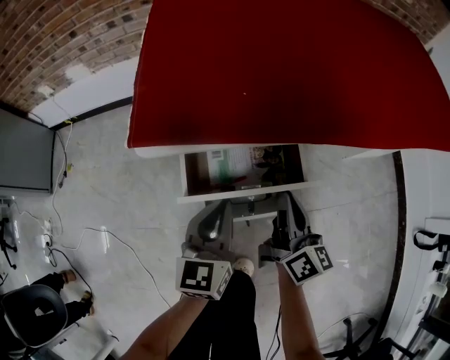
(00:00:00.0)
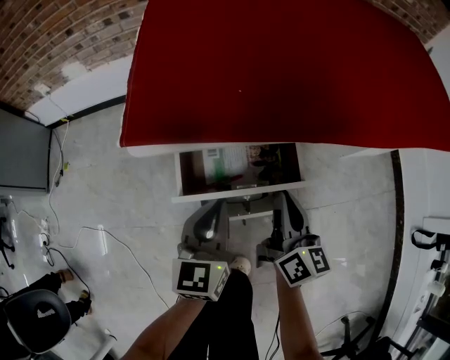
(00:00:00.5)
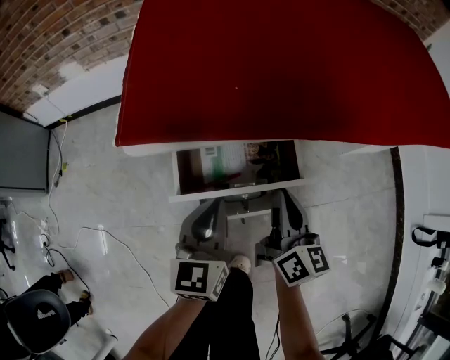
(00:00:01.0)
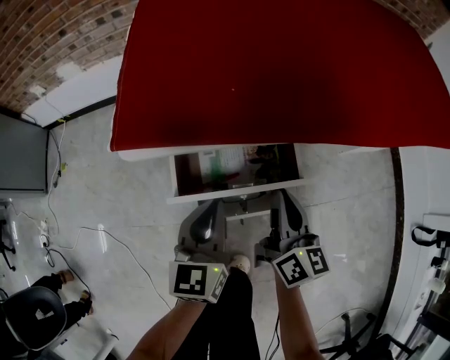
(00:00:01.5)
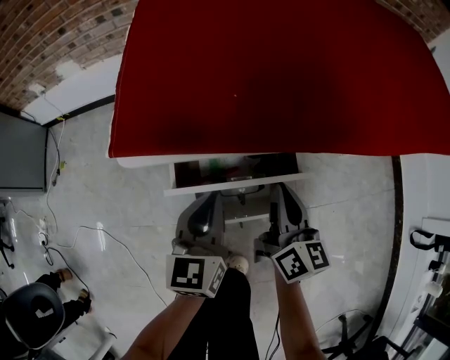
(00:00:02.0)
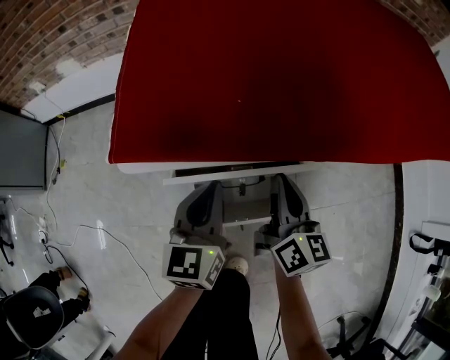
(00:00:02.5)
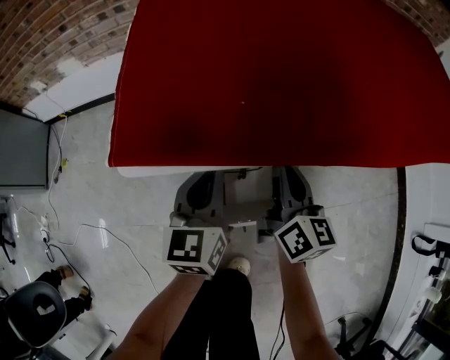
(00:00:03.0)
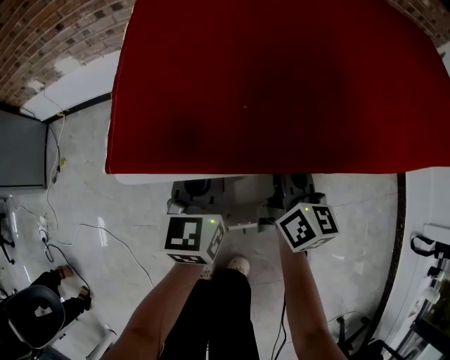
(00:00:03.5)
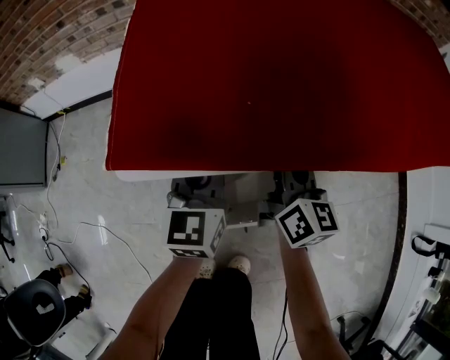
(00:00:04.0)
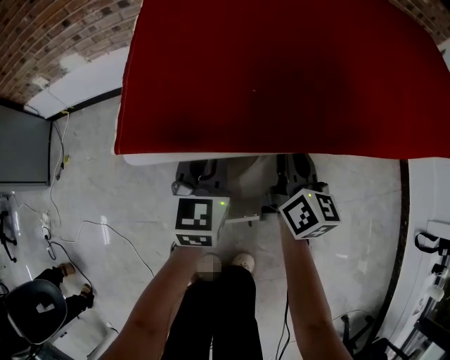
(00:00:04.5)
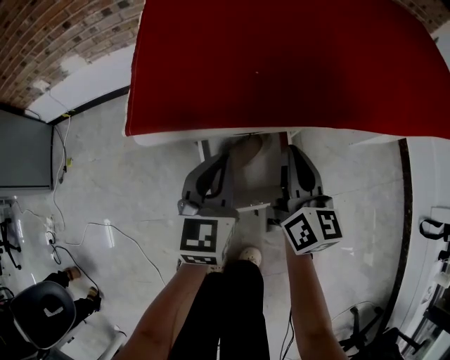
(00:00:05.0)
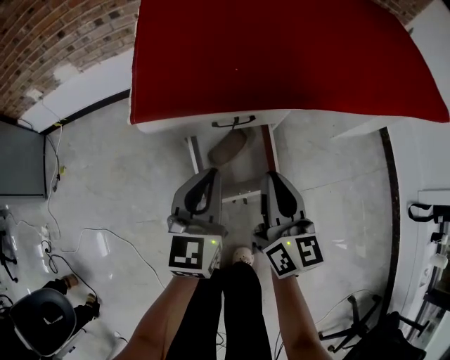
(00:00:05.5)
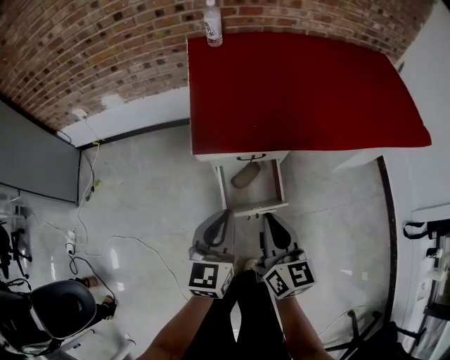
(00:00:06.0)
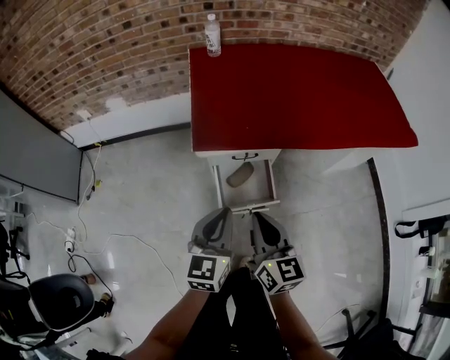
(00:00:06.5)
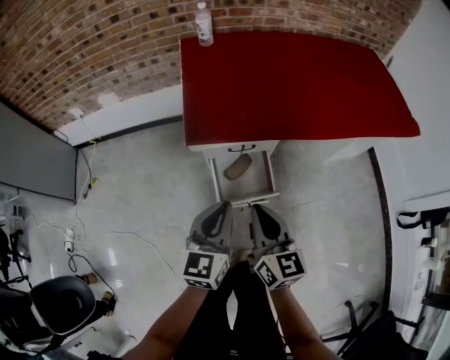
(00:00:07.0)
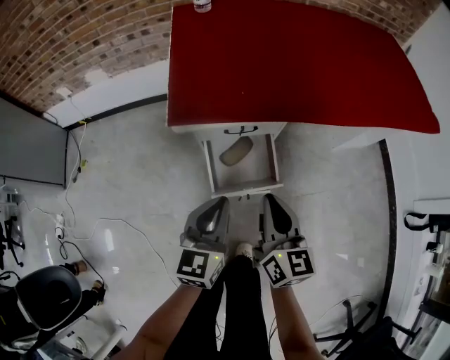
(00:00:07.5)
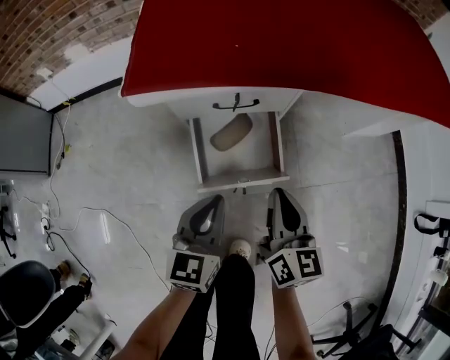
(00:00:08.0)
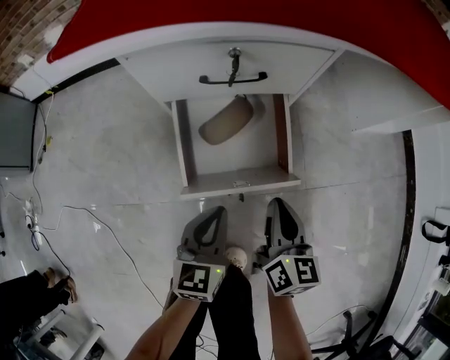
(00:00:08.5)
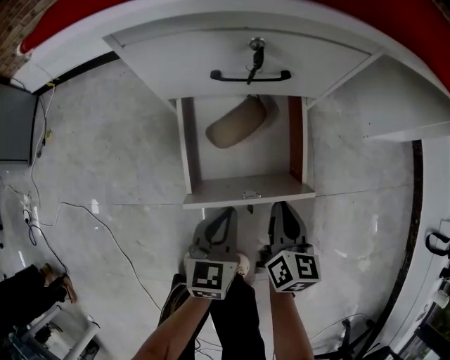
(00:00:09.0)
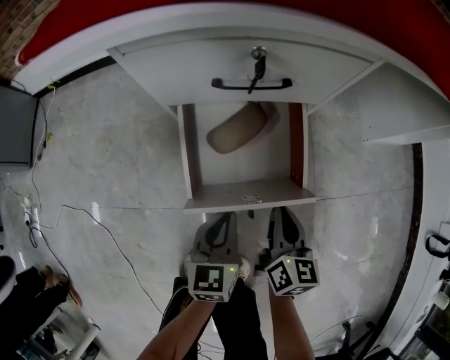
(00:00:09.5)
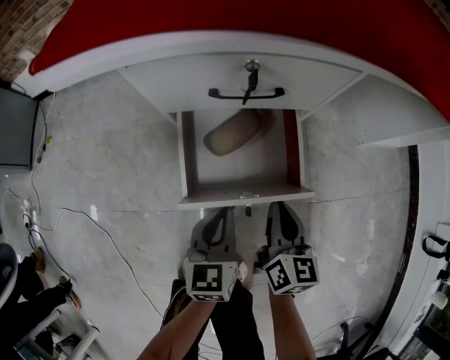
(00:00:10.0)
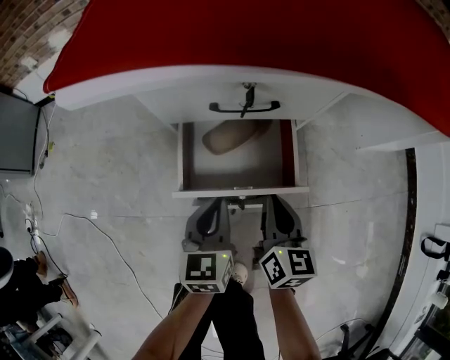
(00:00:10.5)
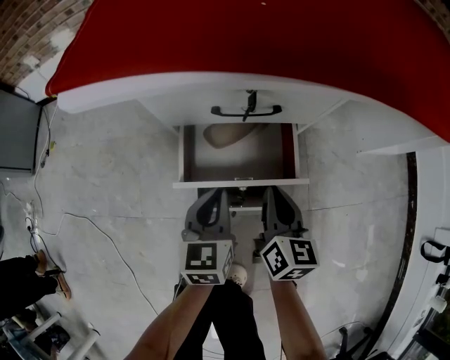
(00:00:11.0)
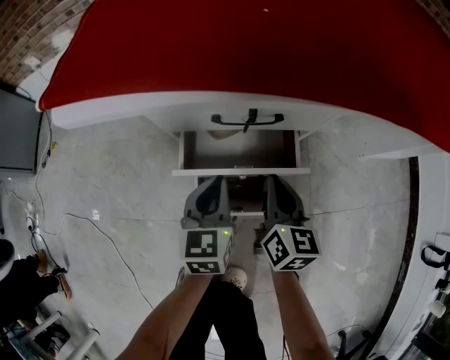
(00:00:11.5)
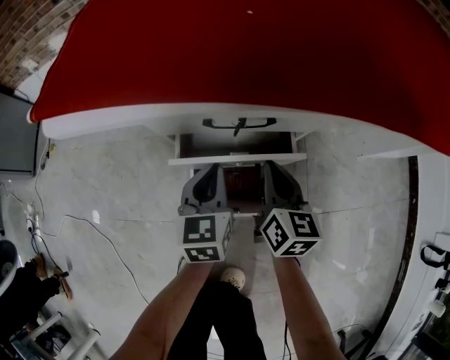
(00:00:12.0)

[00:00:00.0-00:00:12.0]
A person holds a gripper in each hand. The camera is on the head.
00:00:00.0 to 00:00:02.0: The grippers make only small movements.
00:00:02.0 to 00:00:04.0: Both grippers move forward, approximately 10 cm.
00:00:04.0 to 00:00:06.0: The grippers both shift backward and upward by about 30 cm.
00:00:06.0 to 00:00:08.0: The left gripper heads downward, covering about 20 cm. The right gripper travels downward and to the right by some 20 cm.
00:00:08.0 to 00:00:10.0: The two grippers go approximately 20 cm downward.
00:00:10.0 to 00:00:12.0: The two grippers go roughly 15 cm forward.

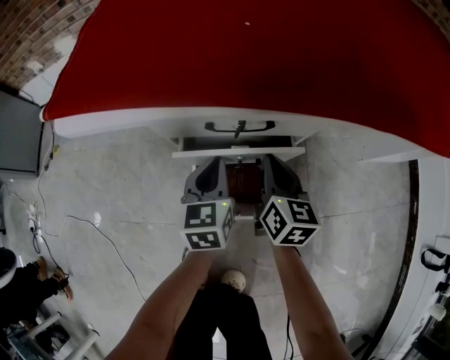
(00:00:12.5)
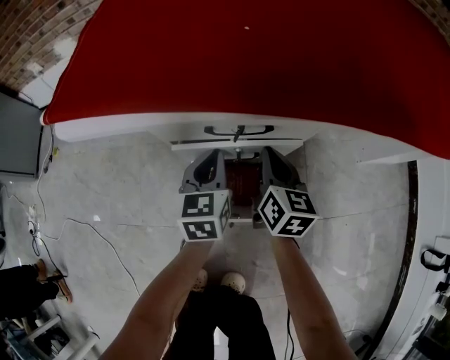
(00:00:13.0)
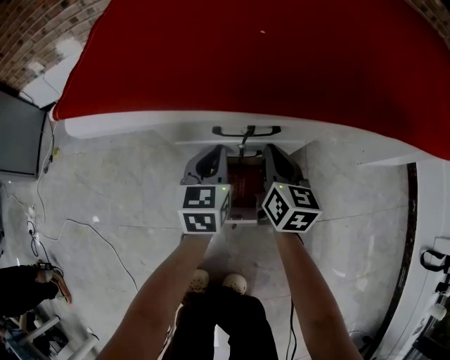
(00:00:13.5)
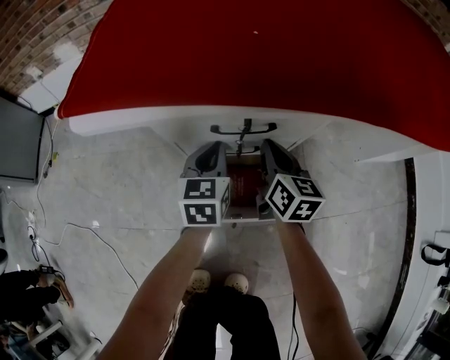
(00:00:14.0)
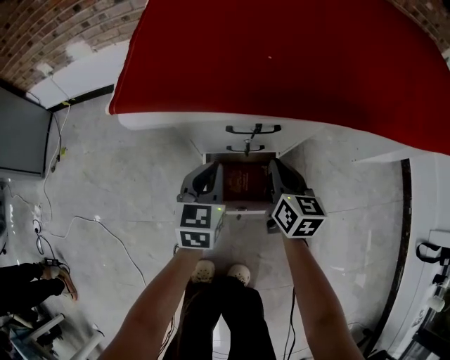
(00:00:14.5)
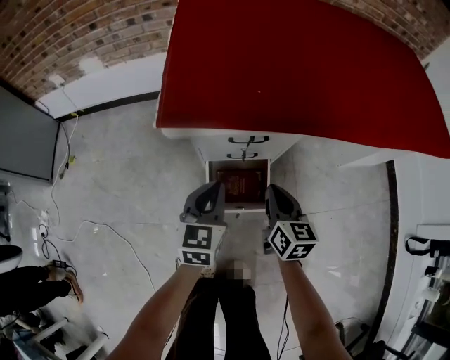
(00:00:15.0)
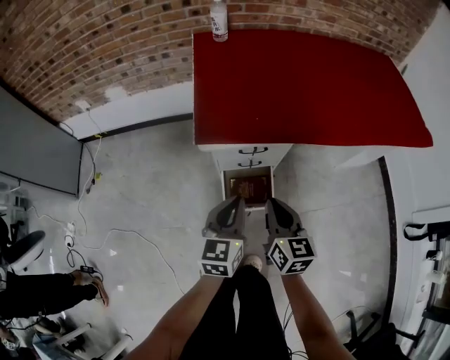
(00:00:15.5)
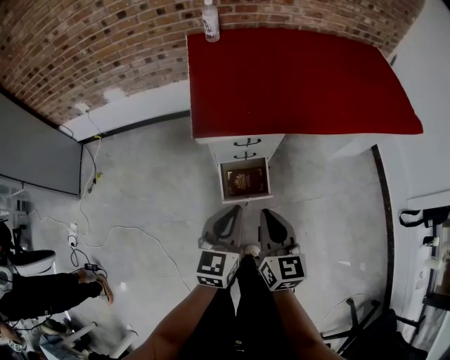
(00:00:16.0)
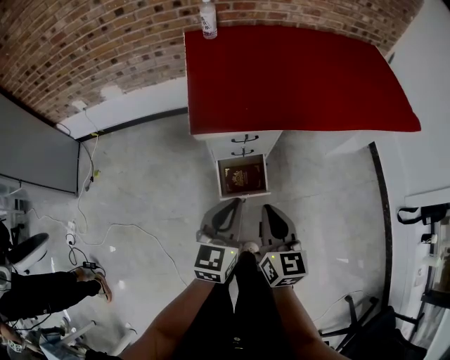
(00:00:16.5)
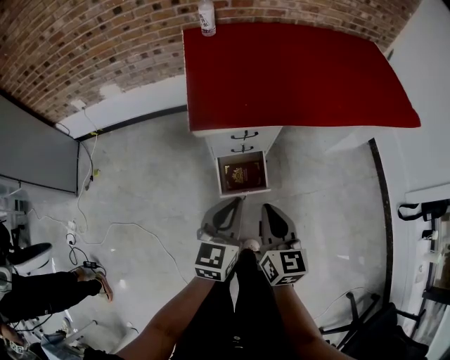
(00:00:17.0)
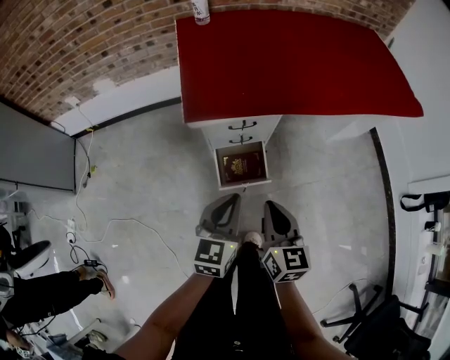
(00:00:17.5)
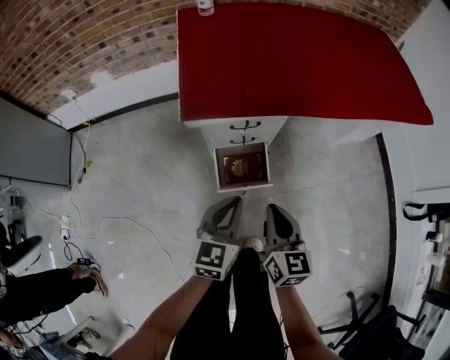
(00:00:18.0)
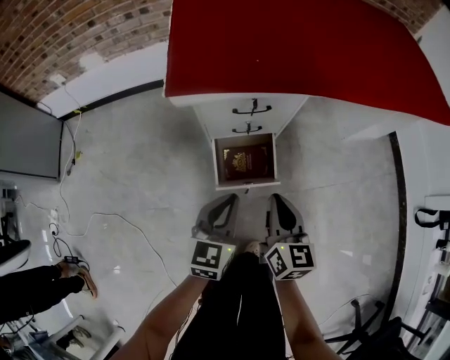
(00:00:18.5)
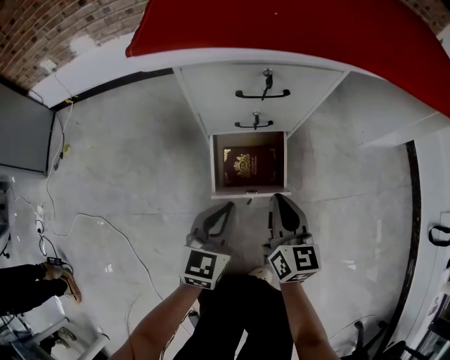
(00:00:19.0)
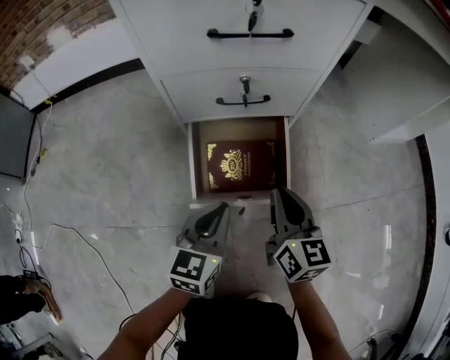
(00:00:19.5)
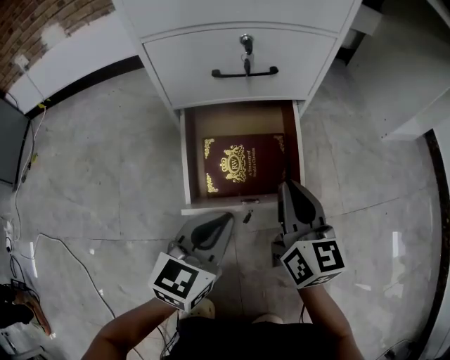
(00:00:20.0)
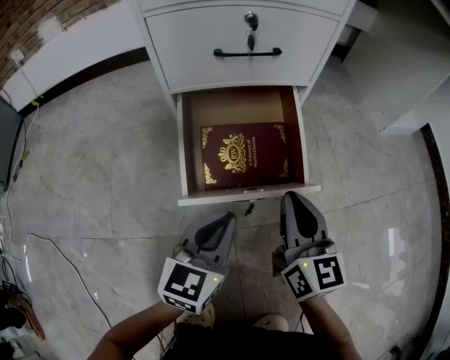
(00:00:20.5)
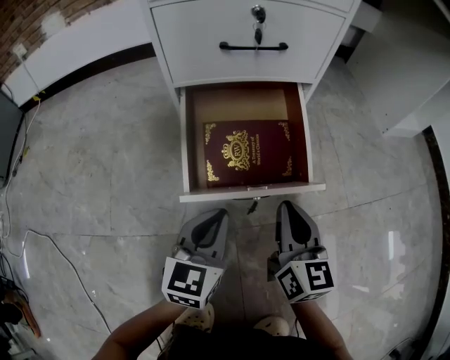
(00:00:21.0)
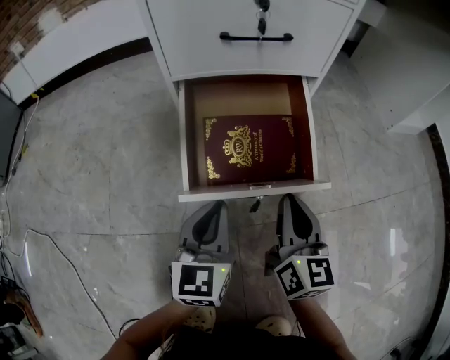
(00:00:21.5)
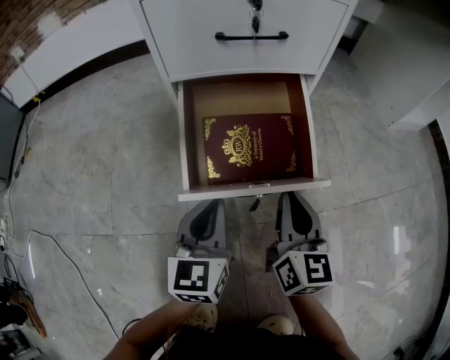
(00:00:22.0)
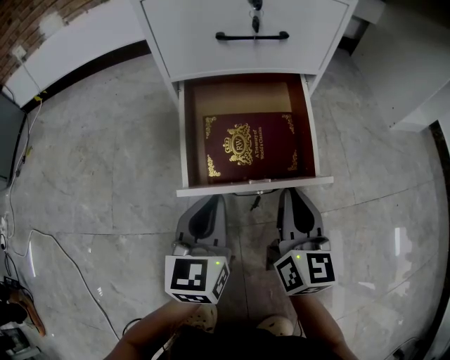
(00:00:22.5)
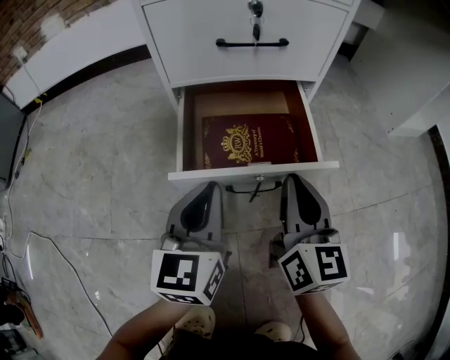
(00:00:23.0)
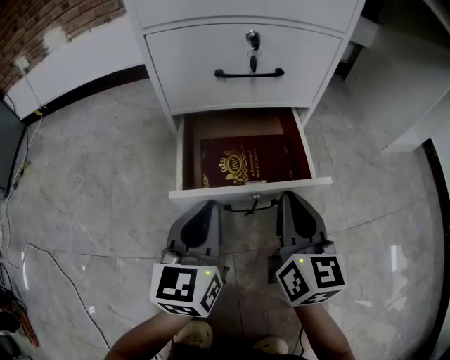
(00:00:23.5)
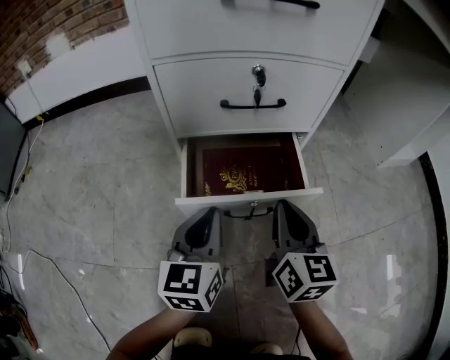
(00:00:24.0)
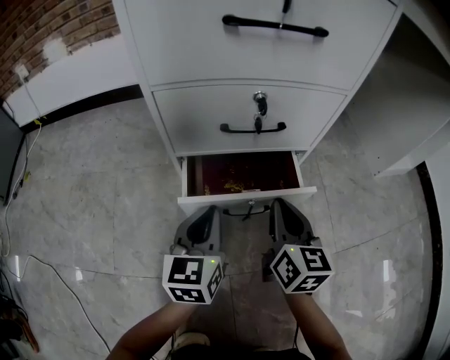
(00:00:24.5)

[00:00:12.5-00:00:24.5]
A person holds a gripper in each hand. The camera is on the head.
00:00:12.5 to 00:00:14.5: The left gripper shifts about 5 cm upward.
00:00:14.5 to 00:00:16.5: The two grippers go some 40 cm upward and backward.
00:00:16.5 to 00:00:18.5: The two grippers go some 20 cm downward.
00:00:18.5 to 00:00:20.5: Both grippers travel together downward, some 40 cm.
00:00:20.5 to 00:00:22.5: The grippers stay close to where they were, moving slightly.
00:00:22.5 to 00:00:24.5: The grippers both shift forward by some 10 cm.

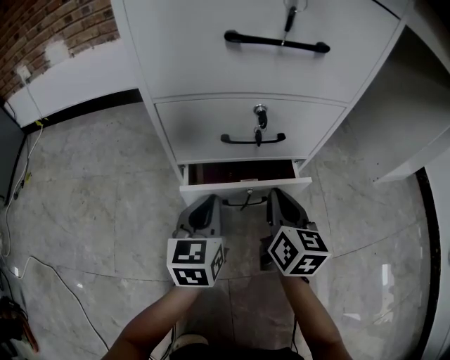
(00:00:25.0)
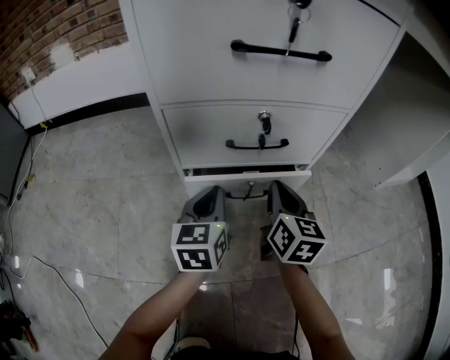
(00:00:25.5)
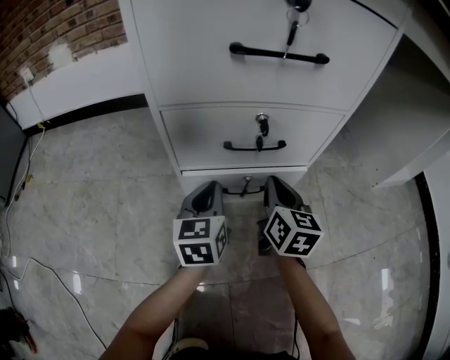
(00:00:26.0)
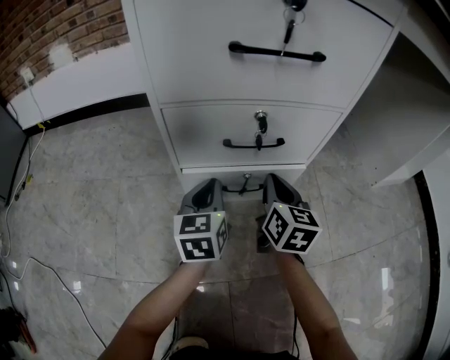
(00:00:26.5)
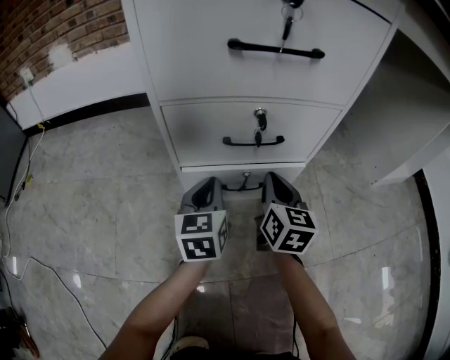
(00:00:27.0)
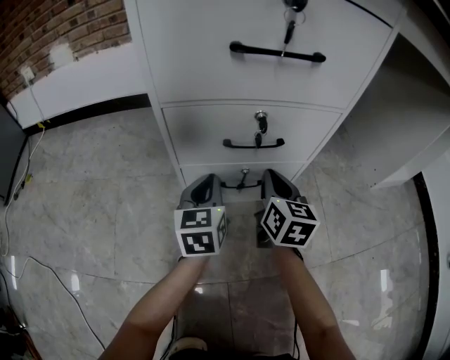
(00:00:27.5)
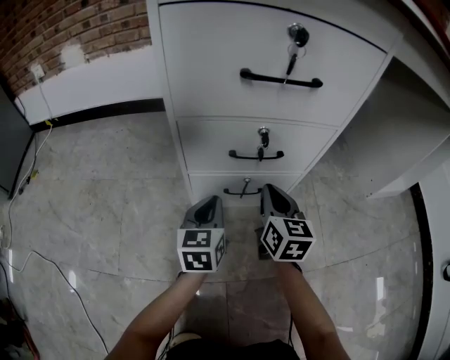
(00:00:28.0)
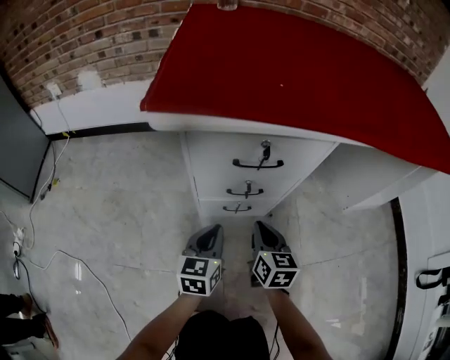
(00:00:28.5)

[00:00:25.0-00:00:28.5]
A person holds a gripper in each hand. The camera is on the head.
00:00:25.0 to 00:00:27.0: The grippers move only a little.
00:00:27.0 to 00:00:28.5: The two grippers go about 20 cm upward and backward.
